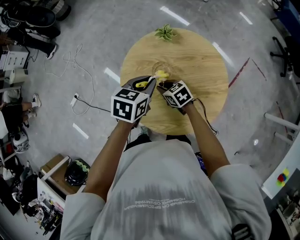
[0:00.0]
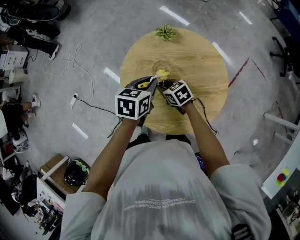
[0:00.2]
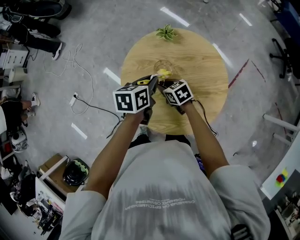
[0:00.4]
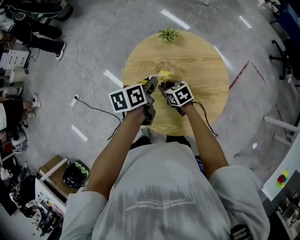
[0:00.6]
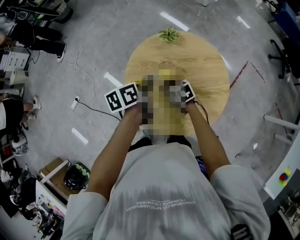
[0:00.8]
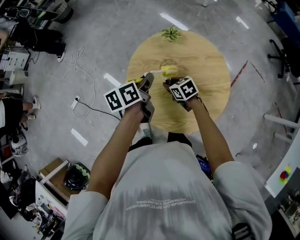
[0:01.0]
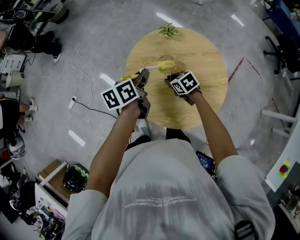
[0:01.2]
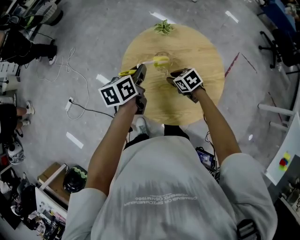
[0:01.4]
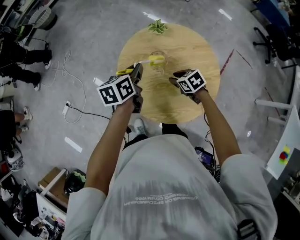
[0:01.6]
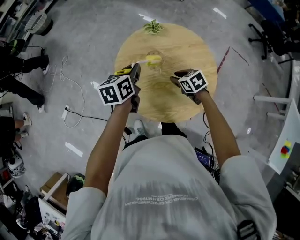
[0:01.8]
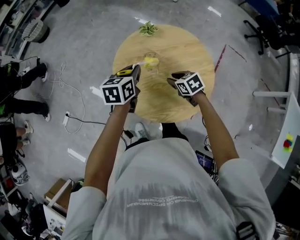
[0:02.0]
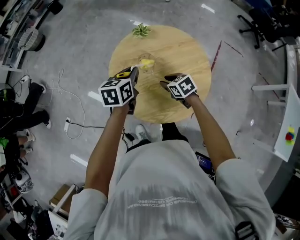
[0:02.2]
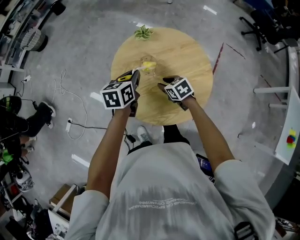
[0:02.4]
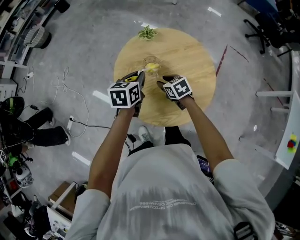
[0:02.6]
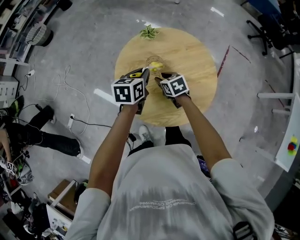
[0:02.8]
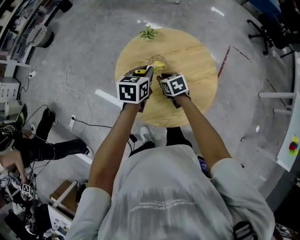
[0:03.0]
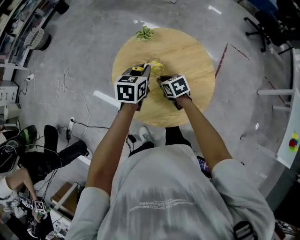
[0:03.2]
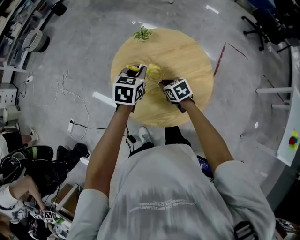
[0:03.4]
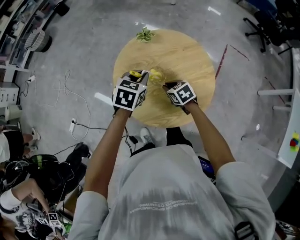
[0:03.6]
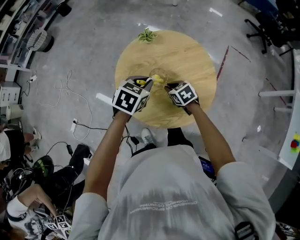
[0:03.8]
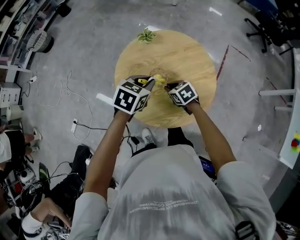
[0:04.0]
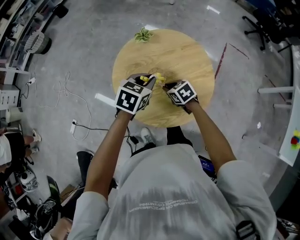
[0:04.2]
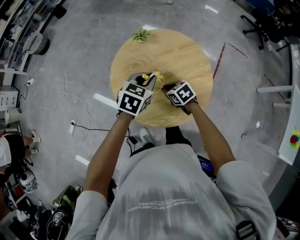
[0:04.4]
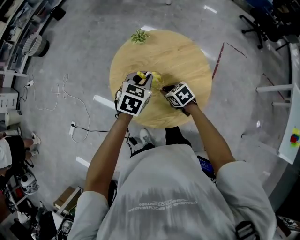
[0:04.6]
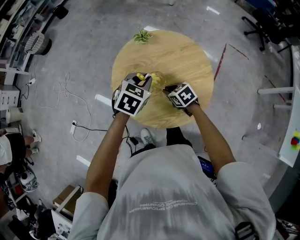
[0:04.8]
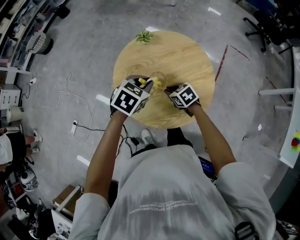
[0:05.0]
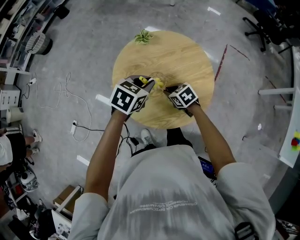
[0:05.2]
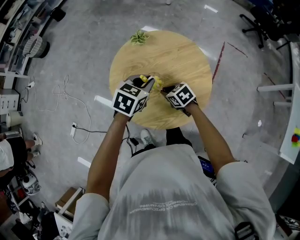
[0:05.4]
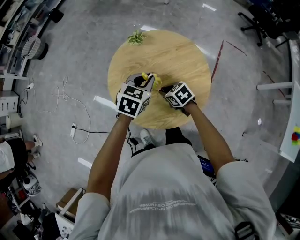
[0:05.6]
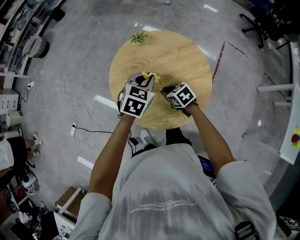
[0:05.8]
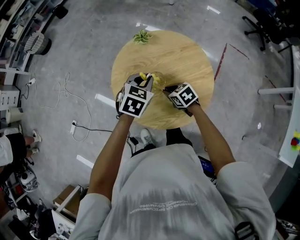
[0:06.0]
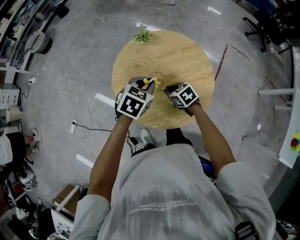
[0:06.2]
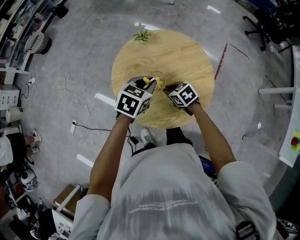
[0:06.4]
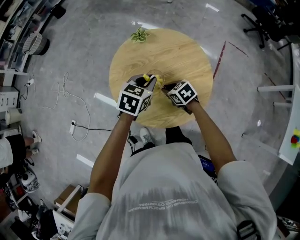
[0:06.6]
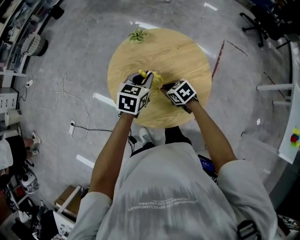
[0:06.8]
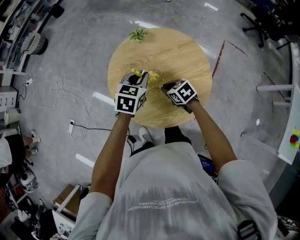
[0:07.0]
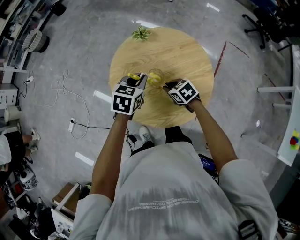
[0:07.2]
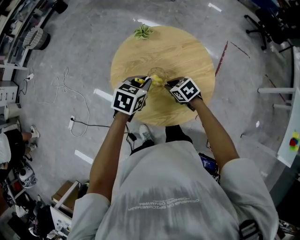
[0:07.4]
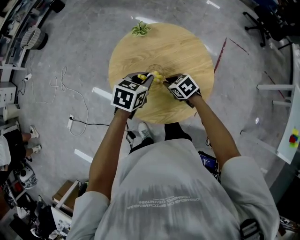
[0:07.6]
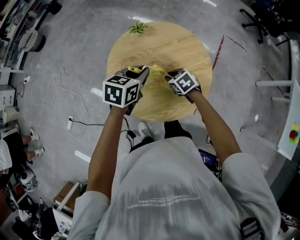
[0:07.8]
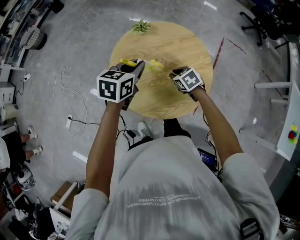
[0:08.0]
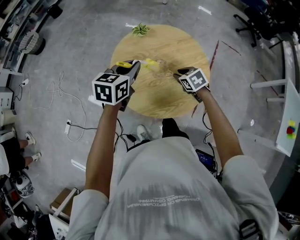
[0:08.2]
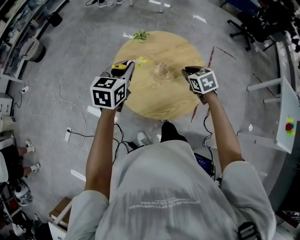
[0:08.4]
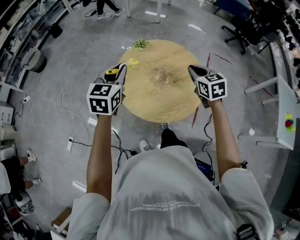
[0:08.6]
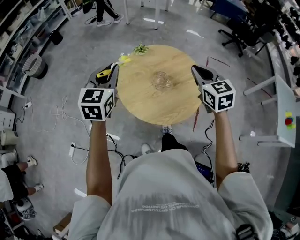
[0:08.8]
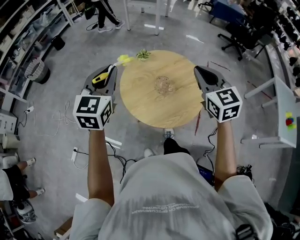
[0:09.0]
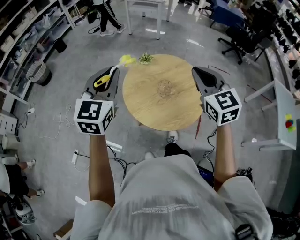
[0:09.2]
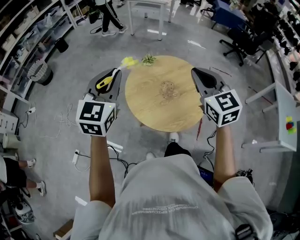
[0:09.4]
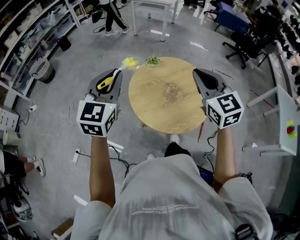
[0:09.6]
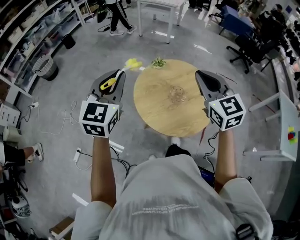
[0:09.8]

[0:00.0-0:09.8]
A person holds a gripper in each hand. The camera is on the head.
0:00.0 to 0:01.4: The left gripper moves to the left, some 5 cm, and changes its angle by about 30 degrees.
0:01.4 to 0:02.8: The right gripper turns by roughly 20 degrees. Meanwhile the left gripper goes about 5 cm to the right, and rotates some 30 degrees.
0:02.8 to 0:04.2: The left gripper changes place by roughly 5 cm, and swivels about 30 degrees. Meanwhile the right gripper goes approximately 5 cm backward, and closes up.
0:04.2 to 0:07.0: The grippers make only small movements.
0:07.0 to 0:08.4: The left gripper is displaced upward and to the left by about 15 cm, while the right gripper heads upward and to the right, covering roughly 15 cm, and turns by about 30 degrees.
0:08.4 to 0:09.8: The two grippers go some 25 cm upward and to the left. The left gripper turns by about 30 degrees, while the right gripper tilts its fingers roughly 40 degrees upward.

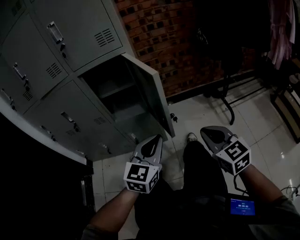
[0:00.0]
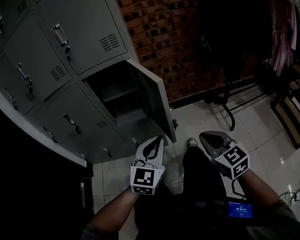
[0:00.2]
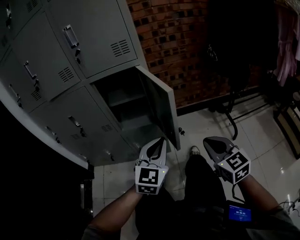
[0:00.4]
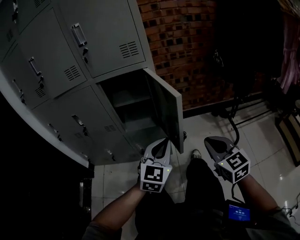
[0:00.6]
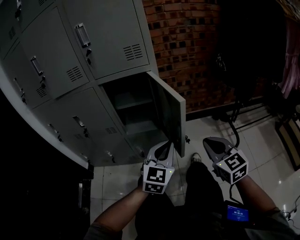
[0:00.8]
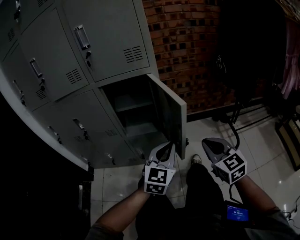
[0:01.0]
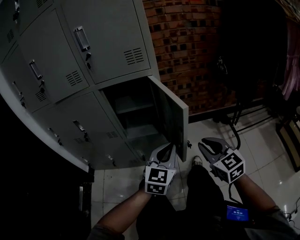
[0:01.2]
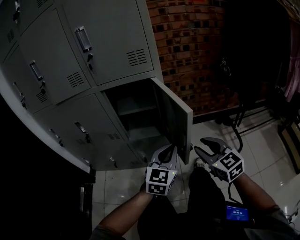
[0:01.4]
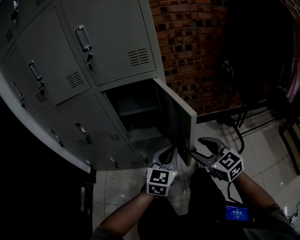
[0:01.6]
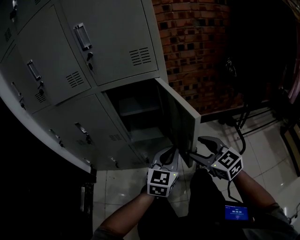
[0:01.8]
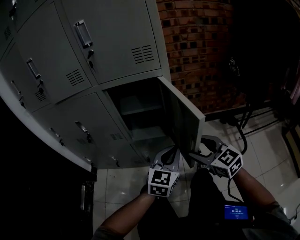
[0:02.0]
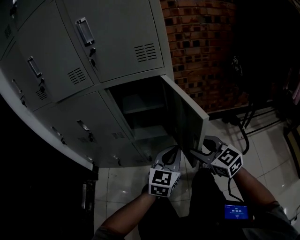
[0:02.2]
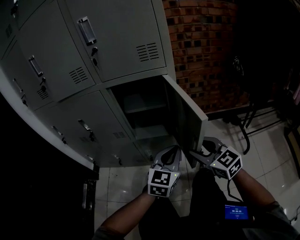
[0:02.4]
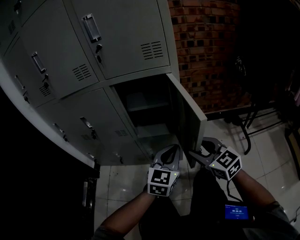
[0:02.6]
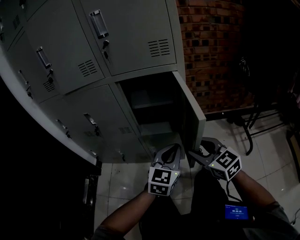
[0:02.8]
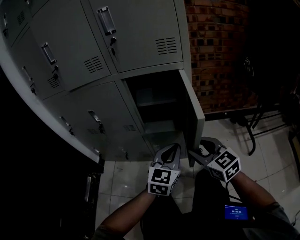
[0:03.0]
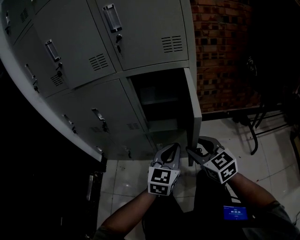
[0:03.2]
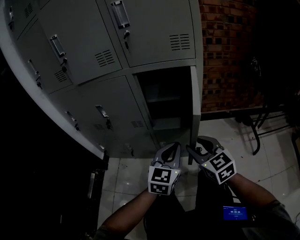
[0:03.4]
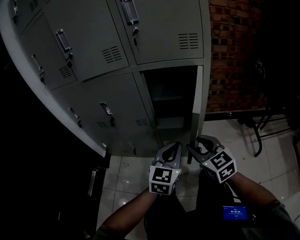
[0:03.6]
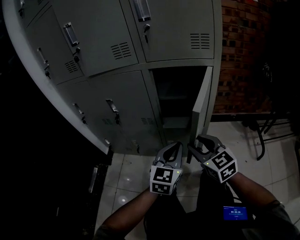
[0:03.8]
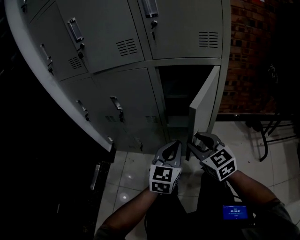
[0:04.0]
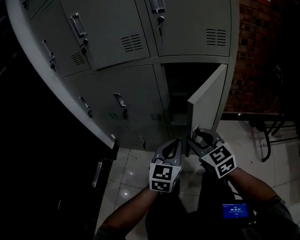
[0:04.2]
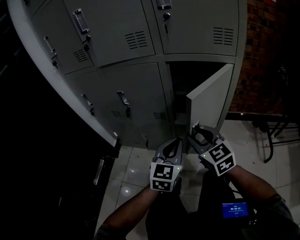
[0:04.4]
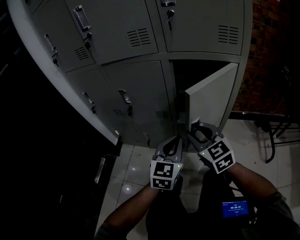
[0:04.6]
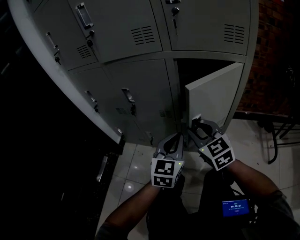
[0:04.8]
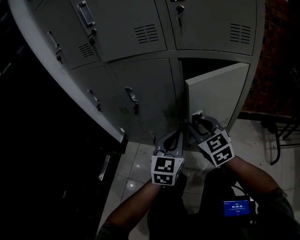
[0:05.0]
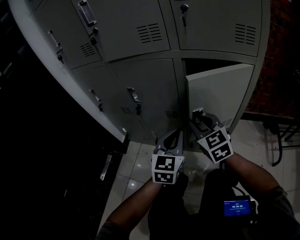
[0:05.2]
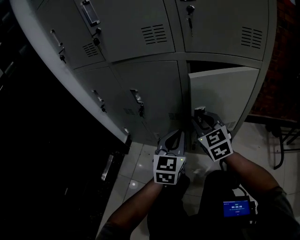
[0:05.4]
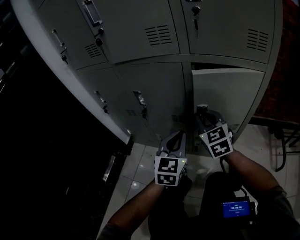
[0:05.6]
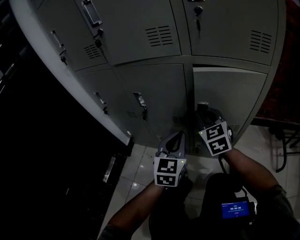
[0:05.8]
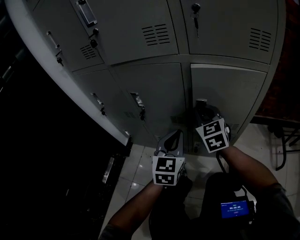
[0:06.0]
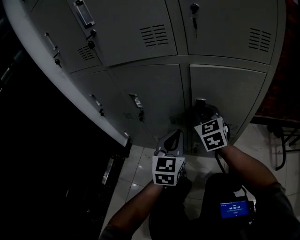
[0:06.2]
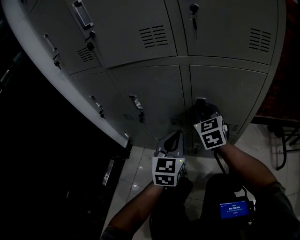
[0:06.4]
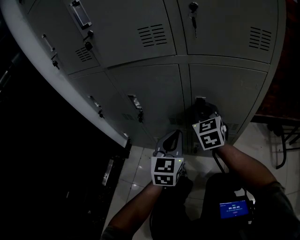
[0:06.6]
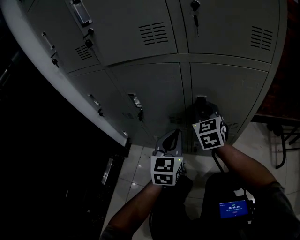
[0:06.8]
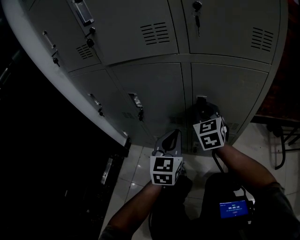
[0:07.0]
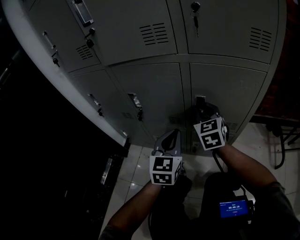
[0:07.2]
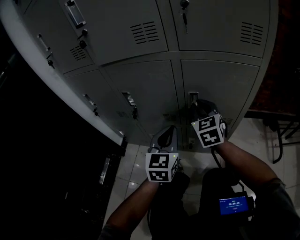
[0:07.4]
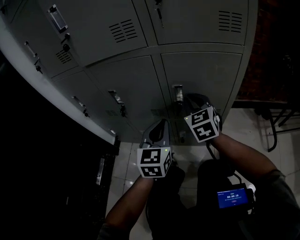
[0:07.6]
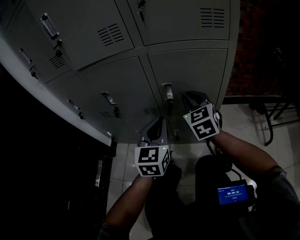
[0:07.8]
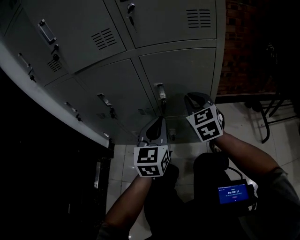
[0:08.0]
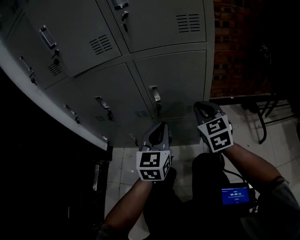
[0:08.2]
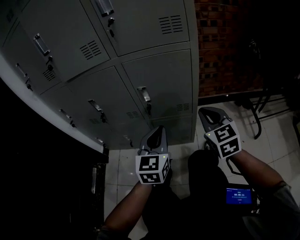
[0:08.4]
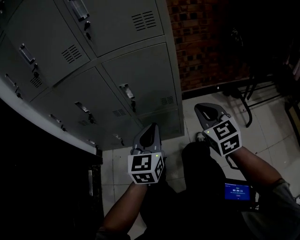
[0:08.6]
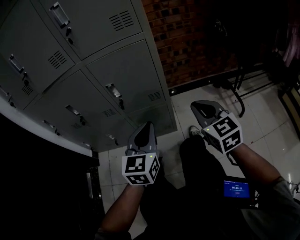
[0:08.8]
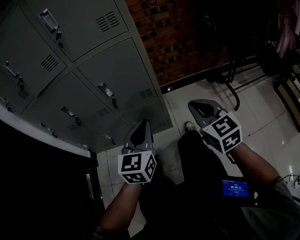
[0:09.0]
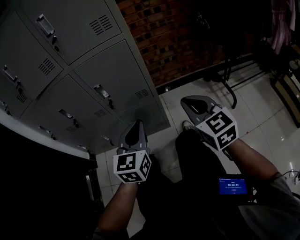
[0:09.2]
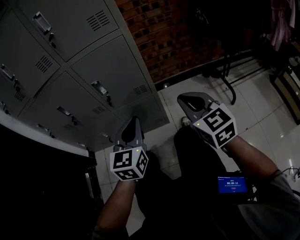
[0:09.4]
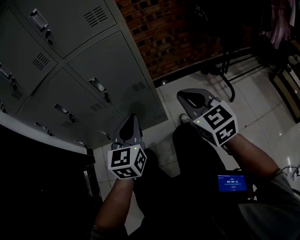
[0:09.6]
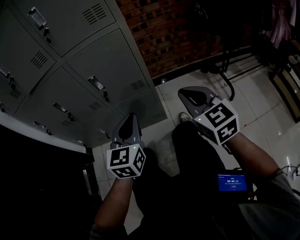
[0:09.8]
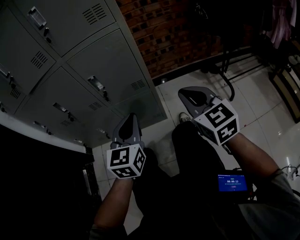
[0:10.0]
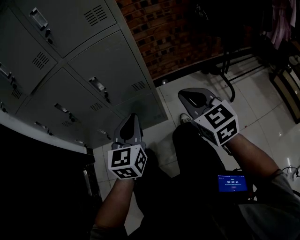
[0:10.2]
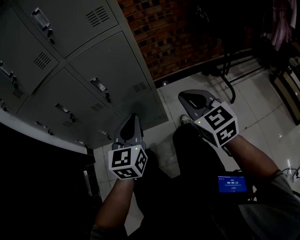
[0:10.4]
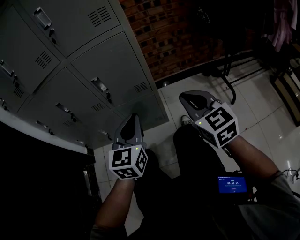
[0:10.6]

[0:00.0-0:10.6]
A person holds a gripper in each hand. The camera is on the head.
0:00.0 to 0:01.6: The left gripper goes some 10 cm forward, while the right gripper goes some 15 cm forward and to the left, and opens up.
0:01.6 to 0:03.0: The grippers both shift to the left by roughly 10 cm.
0:03.0 to 0:04.6: The left gripper travels to the left by approximately 15 cm, while the right gripper travels to the left and forward by approximately 20 cm.
0:04.6 to 0:06.0: The right gripper is displaced forward by some 15 cm, while the left gripper travels forward and to the left by some 10 cm.
0:06.0 to 0:07.6: The grippers stay close to where they were, moving slightly.
0:07.6 to 0:09.0: The two grippers go about 30 cm to the right and backward.
0:09.0 to 0:10.6: The grippers make only small movements.

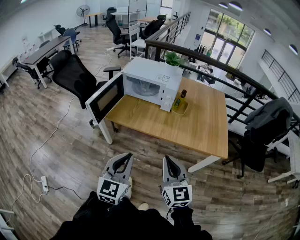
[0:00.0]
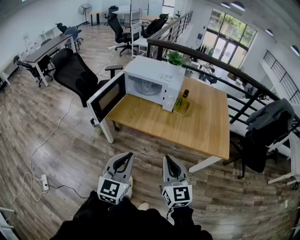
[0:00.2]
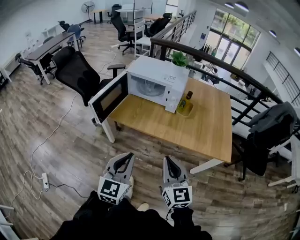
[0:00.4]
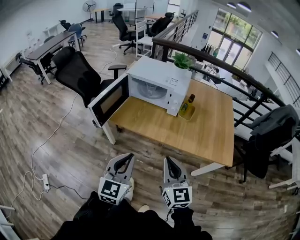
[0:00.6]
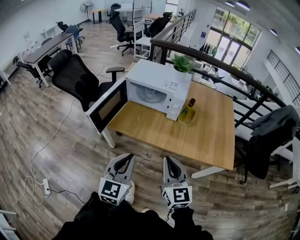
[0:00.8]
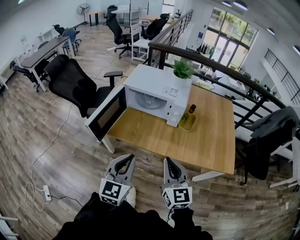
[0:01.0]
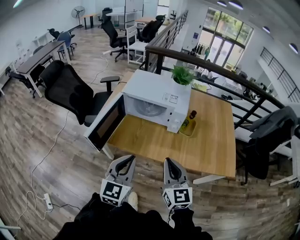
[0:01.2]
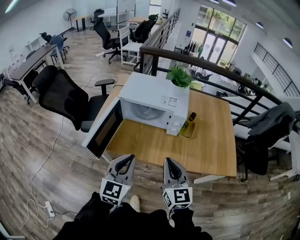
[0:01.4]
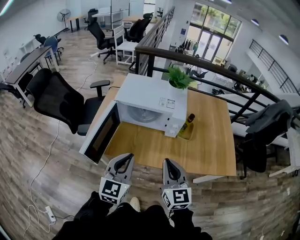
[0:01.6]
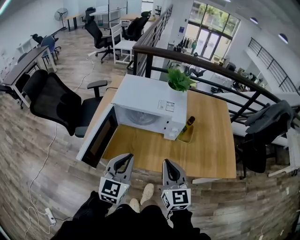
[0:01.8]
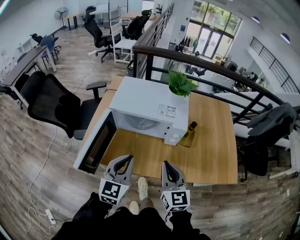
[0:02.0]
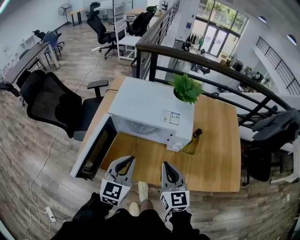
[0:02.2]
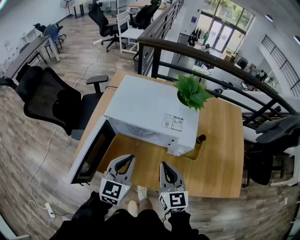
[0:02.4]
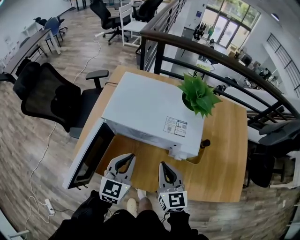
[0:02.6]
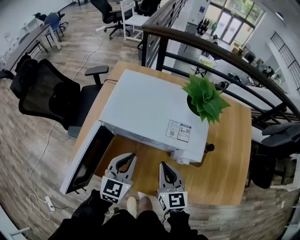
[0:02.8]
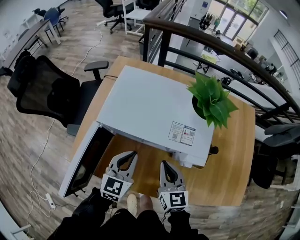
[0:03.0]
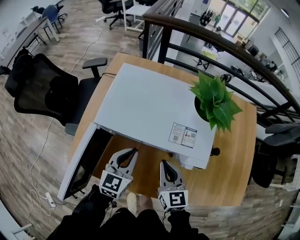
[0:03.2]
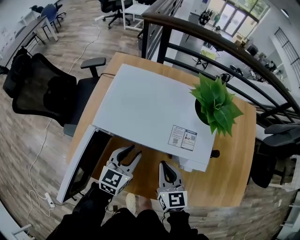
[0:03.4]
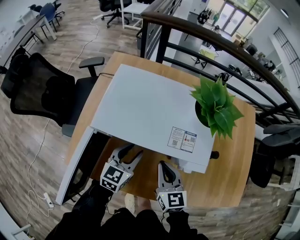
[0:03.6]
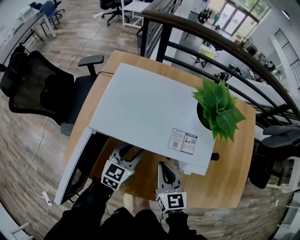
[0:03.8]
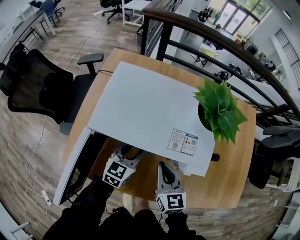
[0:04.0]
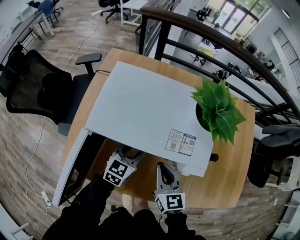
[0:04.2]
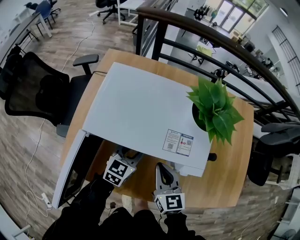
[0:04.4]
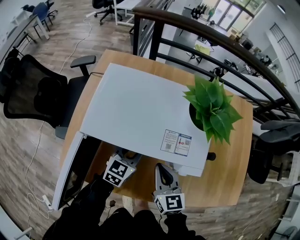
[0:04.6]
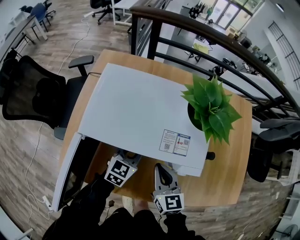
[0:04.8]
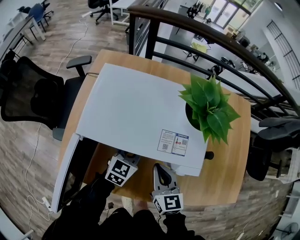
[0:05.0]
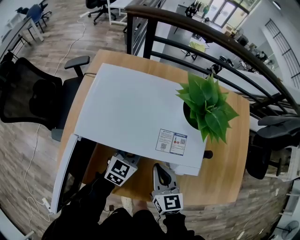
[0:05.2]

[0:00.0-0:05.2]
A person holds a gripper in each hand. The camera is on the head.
0:00.0 to 0:01.8: Both grippers move forward, roughly 35 cm.
0:01.8 to 0:03.4: The two grippers go approximately 35 cm forward and downward. The left gripper opens.
0:03.4 to 0:05.2: The left gripper shifts roughly 10 cm to the right, forward and downward, and closes its fingers.
